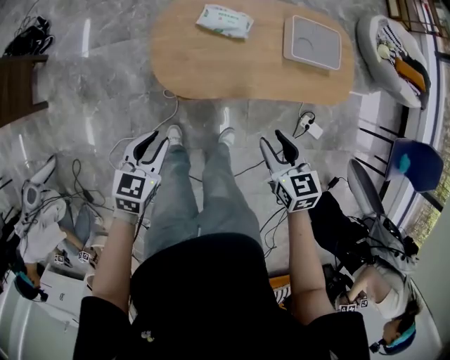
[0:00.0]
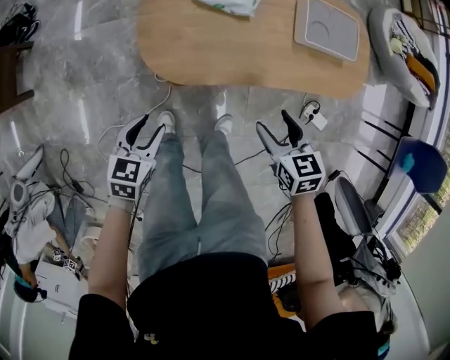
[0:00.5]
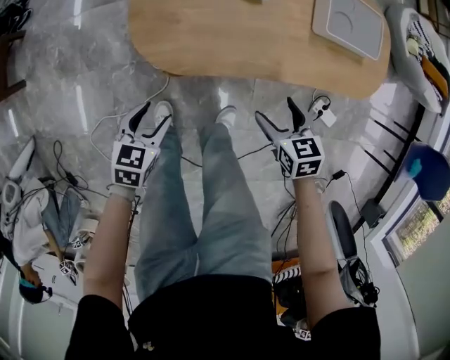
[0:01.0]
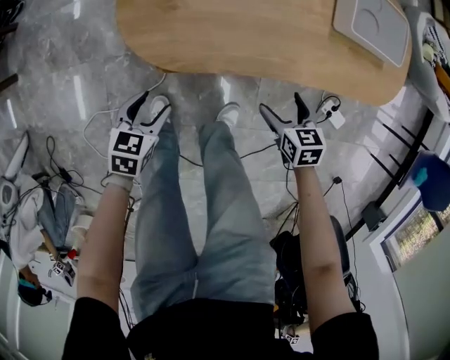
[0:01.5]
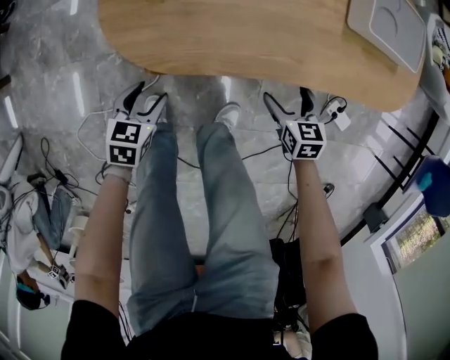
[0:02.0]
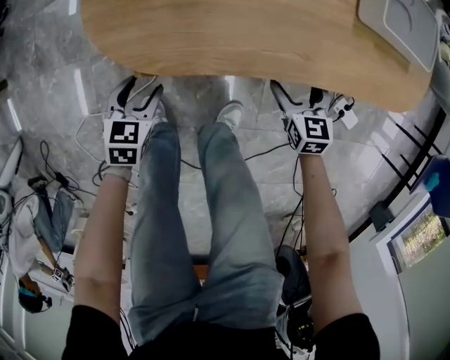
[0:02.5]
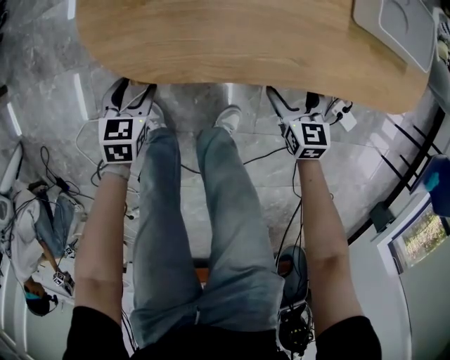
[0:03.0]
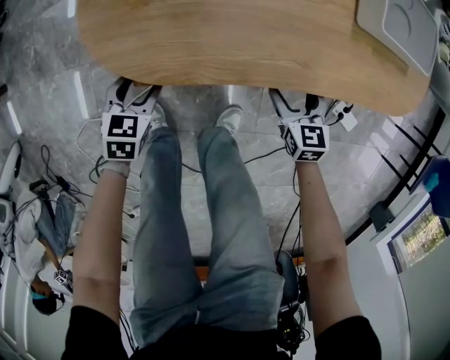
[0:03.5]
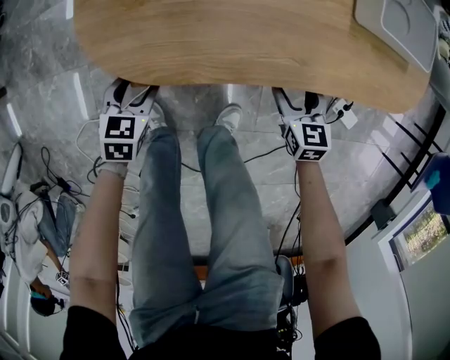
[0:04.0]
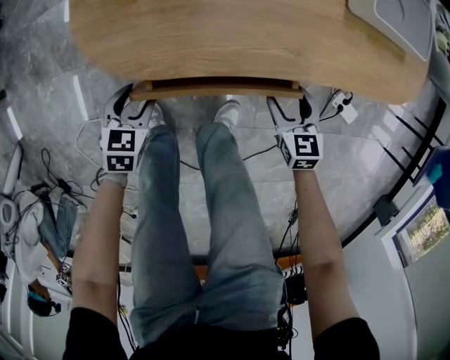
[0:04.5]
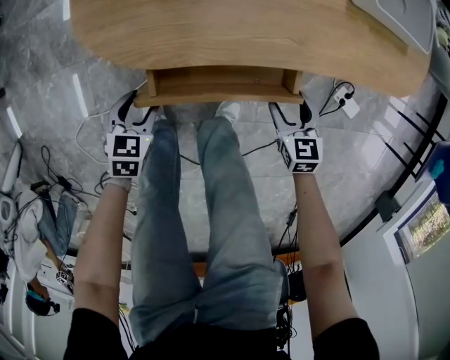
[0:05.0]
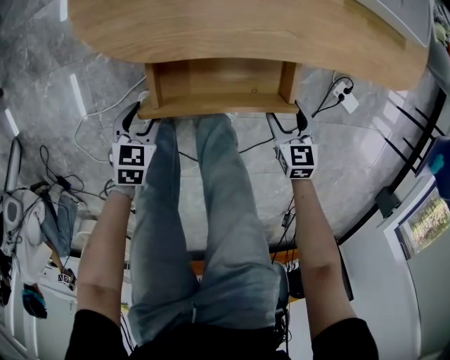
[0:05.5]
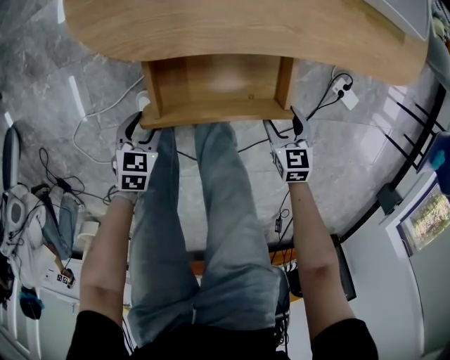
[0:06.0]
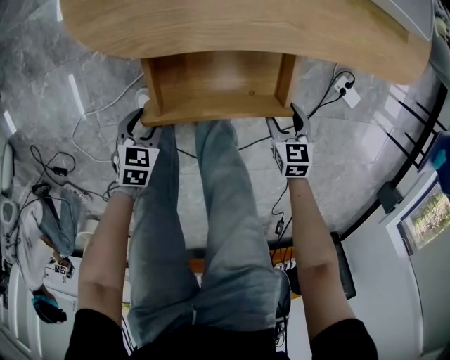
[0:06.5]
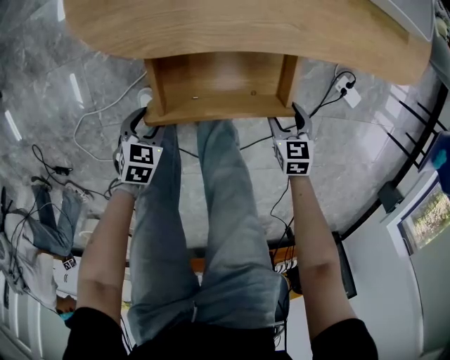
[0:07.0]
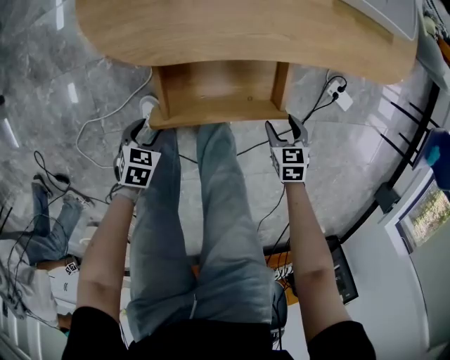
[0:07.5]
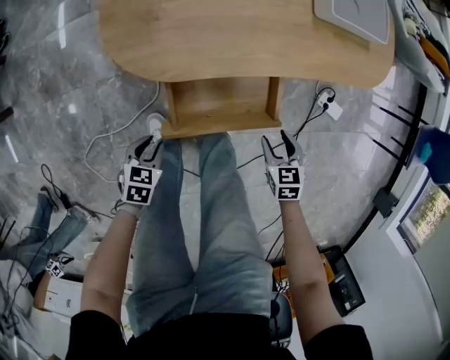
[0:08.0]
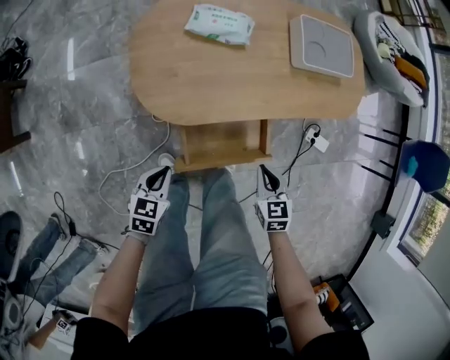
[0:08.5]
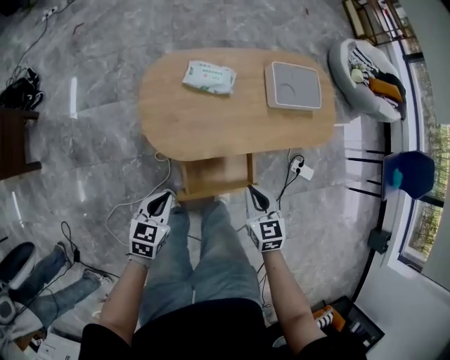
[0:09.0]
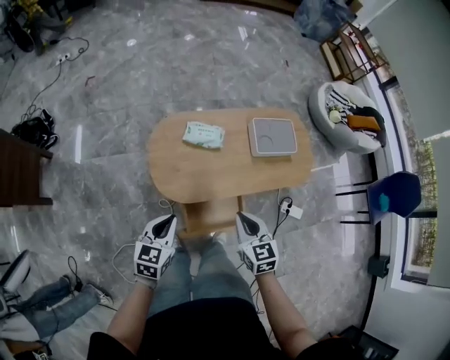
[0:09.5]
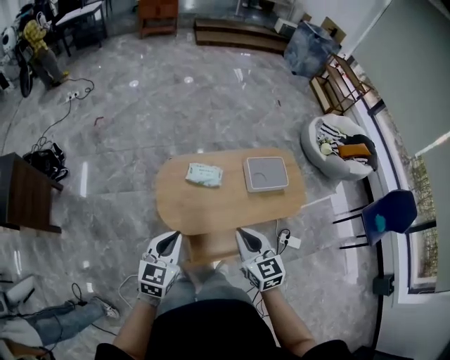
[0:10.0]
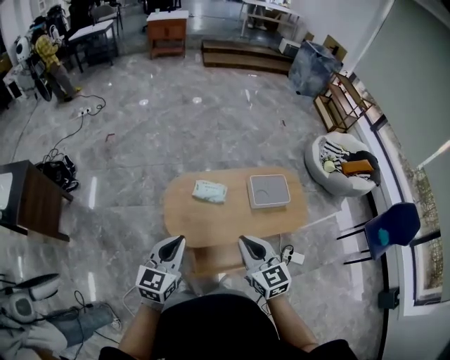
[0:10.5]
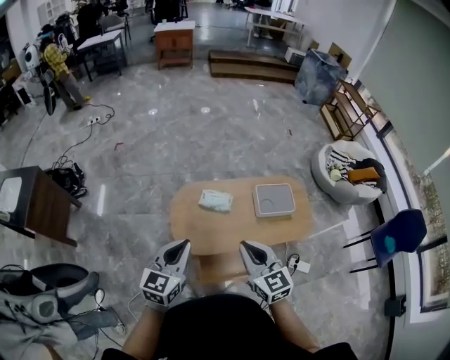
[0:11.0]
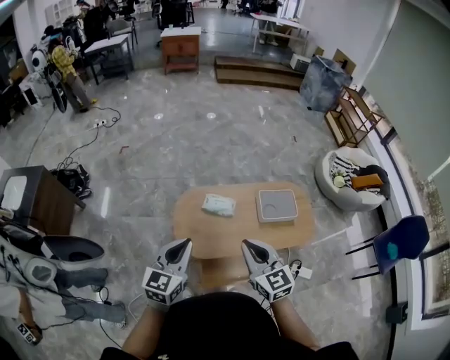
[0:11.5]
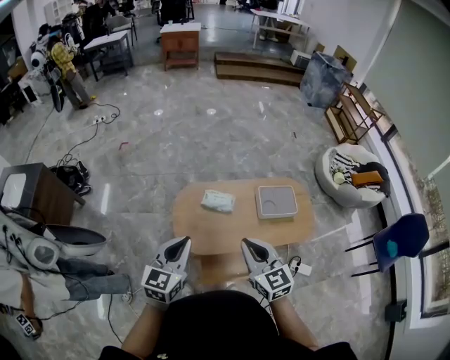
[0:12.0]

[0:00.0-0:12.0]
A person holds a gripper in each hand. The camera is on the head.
0:00.0 to 0:02.0: The two grippers go roughly 40 cm downward. The left gripper opens; the right gripper opens up.
0:02.0 to 0:04.0: The left gripper heads forward, covering roughly 5 cm.
0:04.0 to 0:06.0: Both grippers move backward, about 15 cm.
0:06.0 to 0:08.0: Both grippers travel together upward, about 10 cm. The left gripper closes.
0:08.0 to 0:10.0: Both grippers travel together upward, approximately 60 cm. The left gripper tips its fingers upward by about 40 degrees, and closes its fingers, while the right gripper tilts its fingers approximately 40 degrees upward, and closes.
0:10.0 to 0:12.0: The grippers both shift upward by some 10 cm.

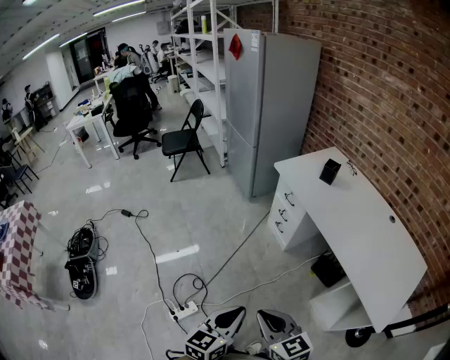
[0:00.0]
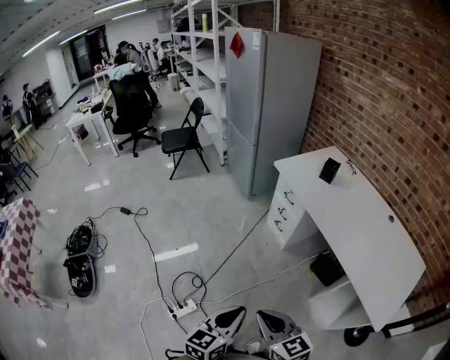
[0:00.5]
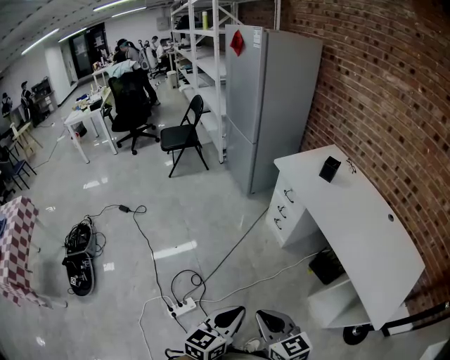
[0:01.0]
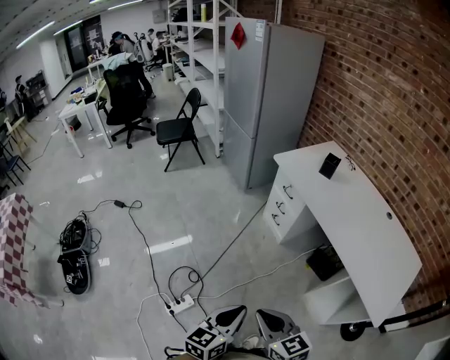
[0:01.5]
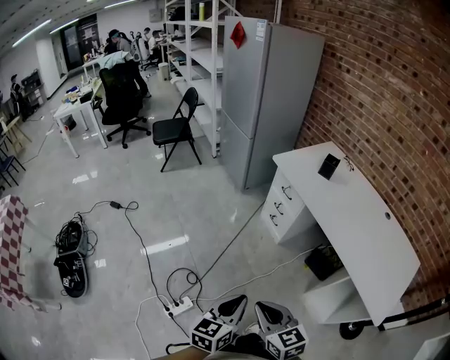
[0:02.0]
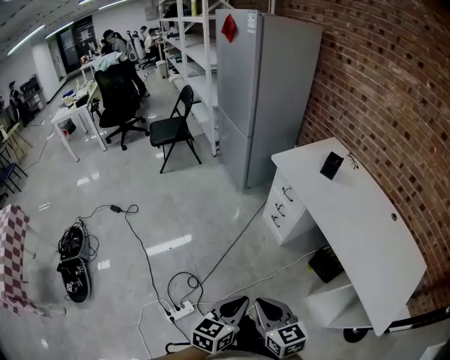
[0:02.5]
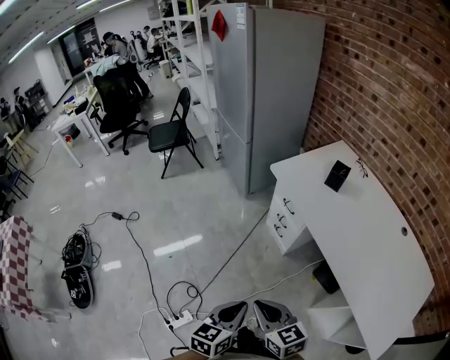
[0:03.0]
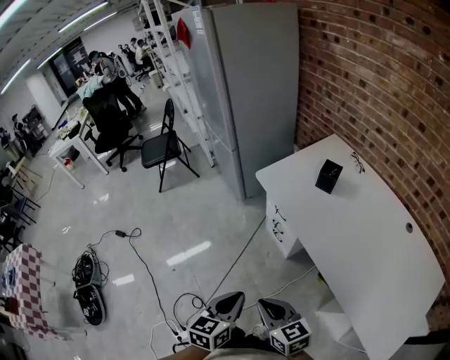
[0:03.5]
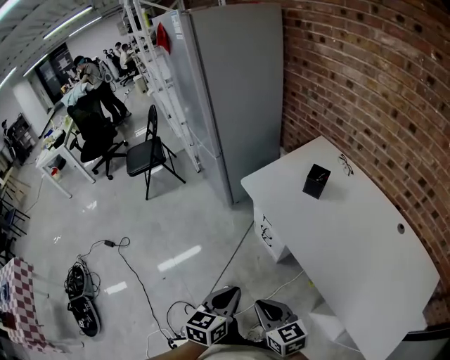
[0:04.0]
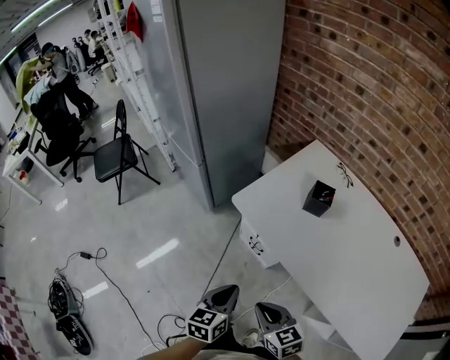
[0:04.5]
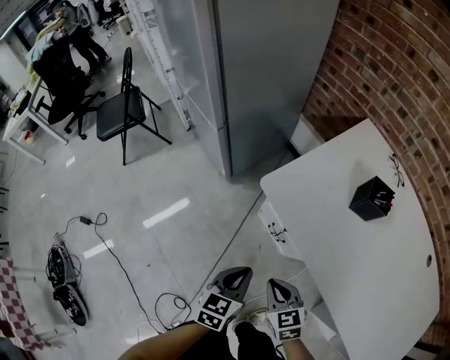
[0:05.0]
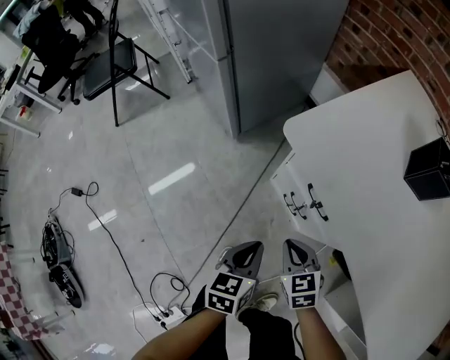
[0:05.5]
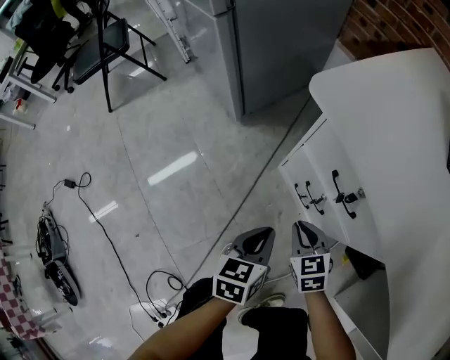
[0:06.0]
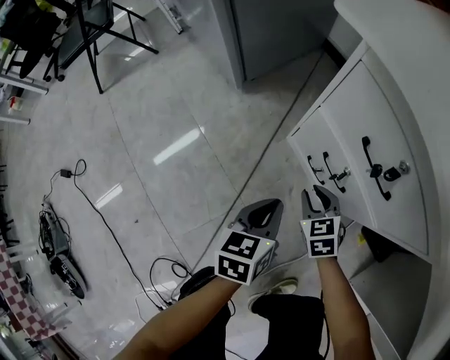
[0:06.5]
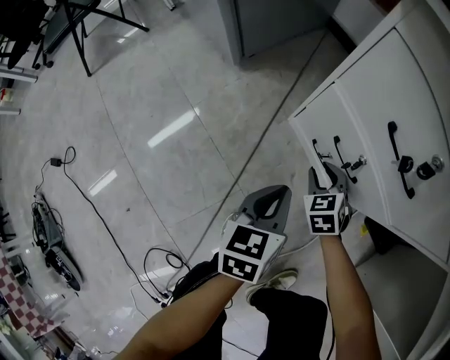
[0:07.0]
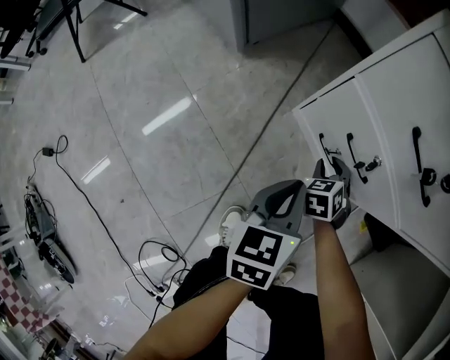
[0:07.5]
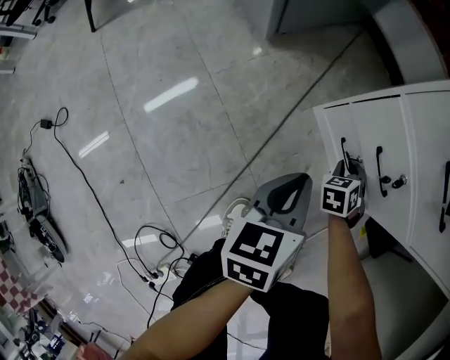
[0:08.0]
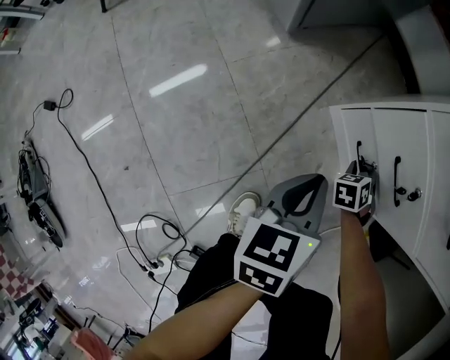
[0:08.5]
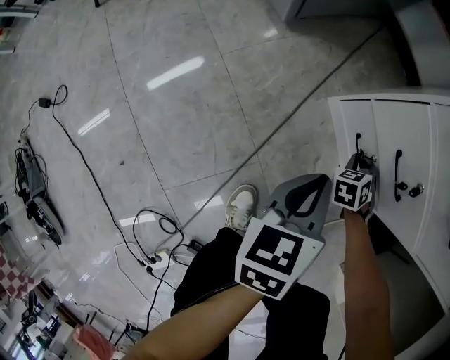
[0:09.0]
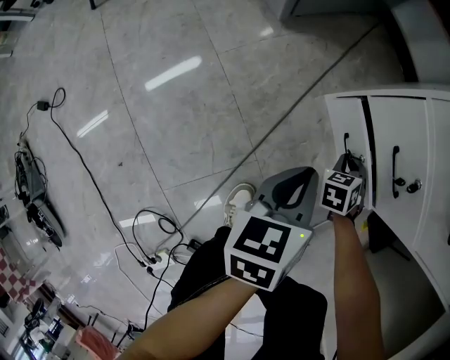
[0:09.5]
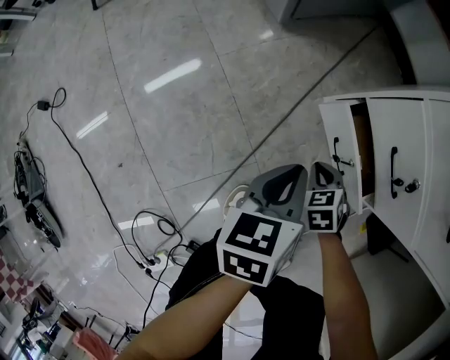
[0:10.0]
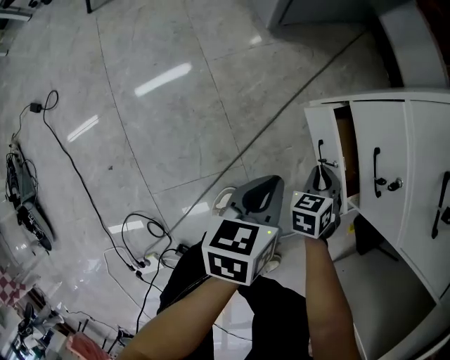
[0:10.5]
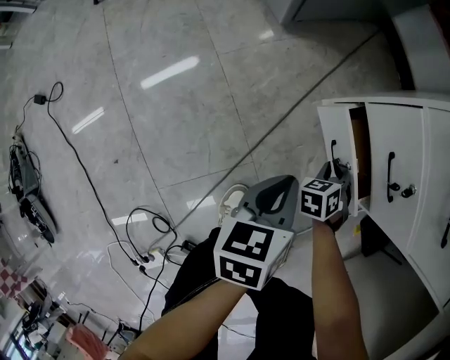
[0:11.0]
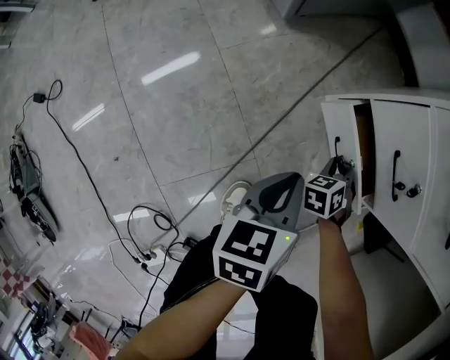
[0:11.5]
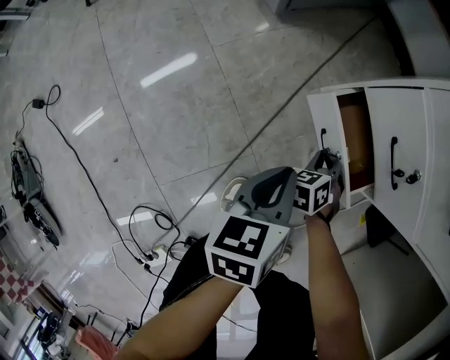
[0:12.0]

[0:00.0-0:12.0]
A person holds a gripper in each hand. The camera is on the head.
0:00.0 to 0:02.0: The right gripper changes place by some 5 cm, while the left gripper changes place by about 5 cm.
0:02.0 to 0:04.0: The grippers both shift forward and to the right by some 35 cm.
0:04.0 to 0:06.0: The two grippers go about 60 cm downward and forward. The right gripper rotates approximately 30 degrees.
0:06.0 to 0:08.0: The right gripper goes approximately 20 cm downward, and changes its angle by approximately 40 degrees; the left gripper travels downward by some 10 cm.
0:08.0 to 0:10.0: The right gripper moves backward and to the left, approximately 10 cm.
0:10.0 to 0:12.0: The grippers move only a little.

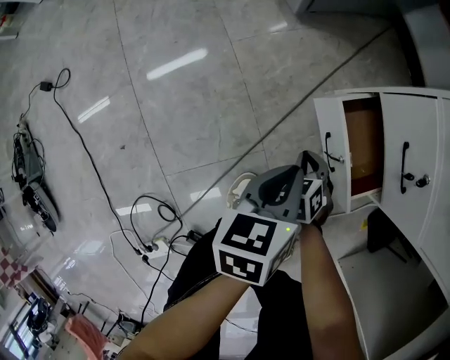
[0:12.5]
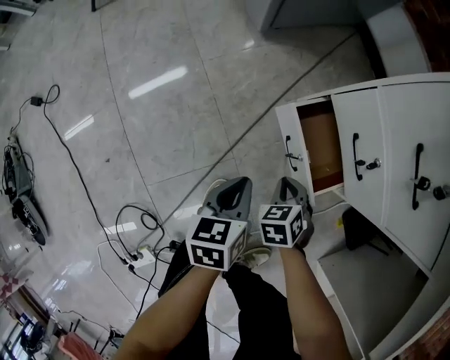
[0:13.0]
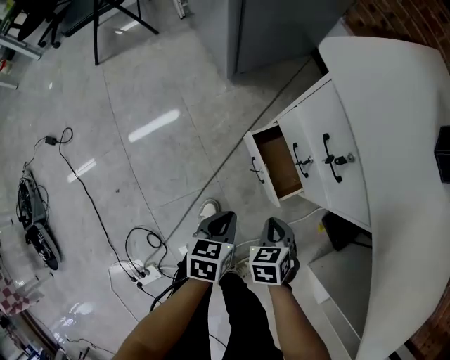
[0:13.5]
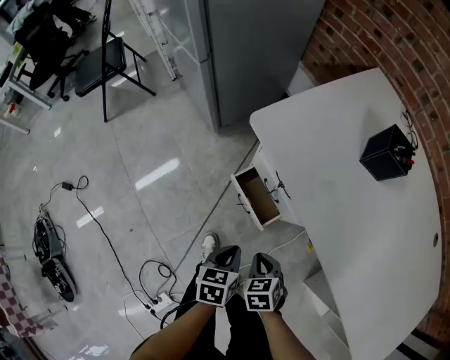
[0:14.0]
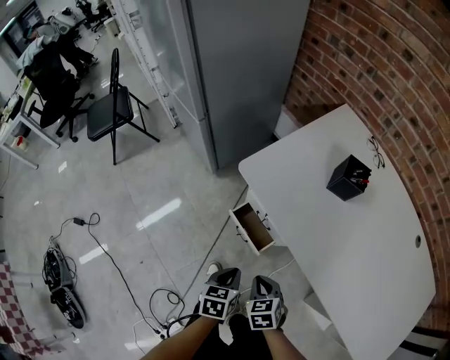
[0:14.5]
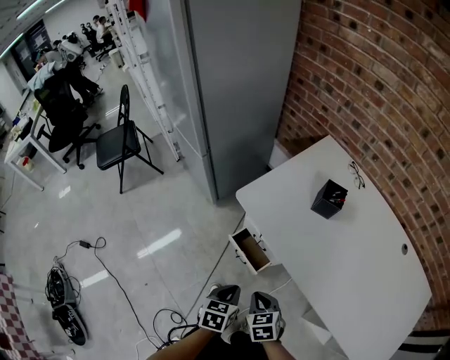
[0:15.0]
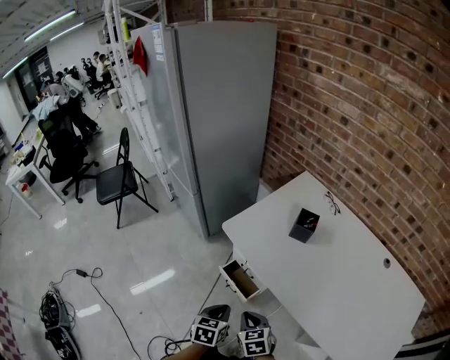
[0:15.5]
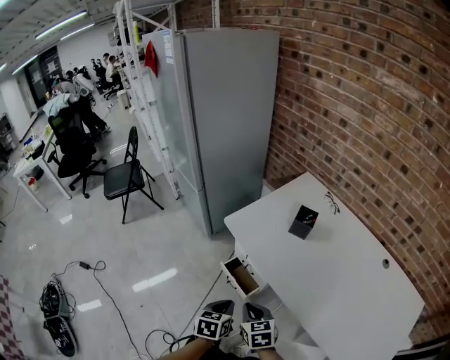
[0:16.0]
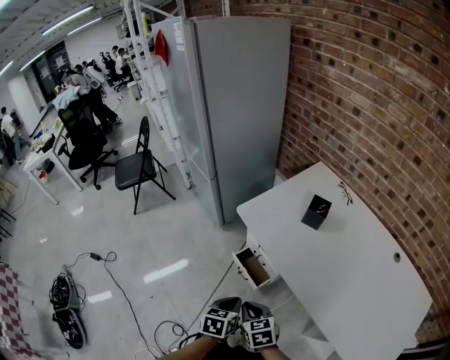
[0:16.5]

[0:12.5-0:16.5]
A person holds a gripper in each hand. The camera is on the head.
0:12.5 to 0:14.5: The two grippers go some 40 cm upward. The left gripper changes its angle by some 30 degrees. Meanwhile the right gripper rotates about 20 degrees.
0:14.5 to 0:16.5: The two grippers go roughly 15 cm upward and backward.
